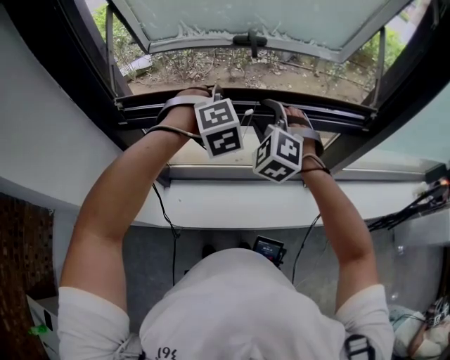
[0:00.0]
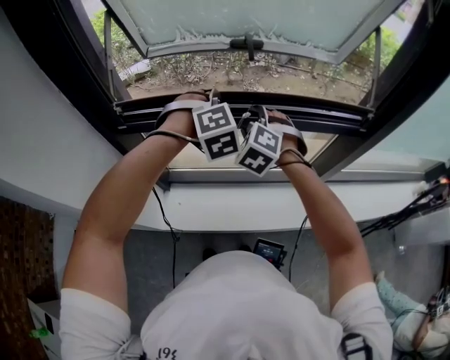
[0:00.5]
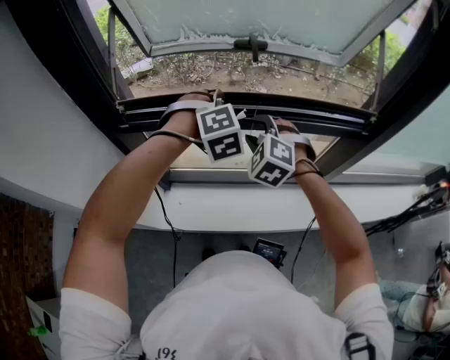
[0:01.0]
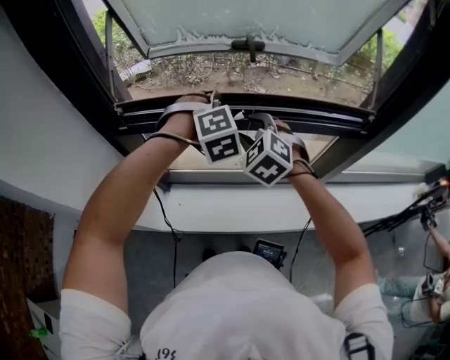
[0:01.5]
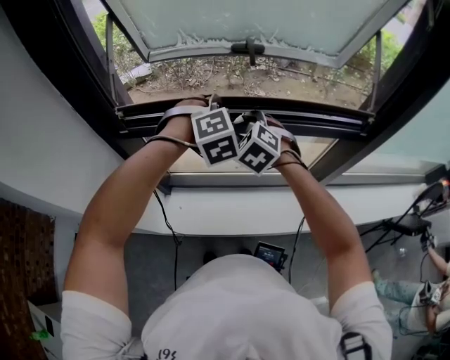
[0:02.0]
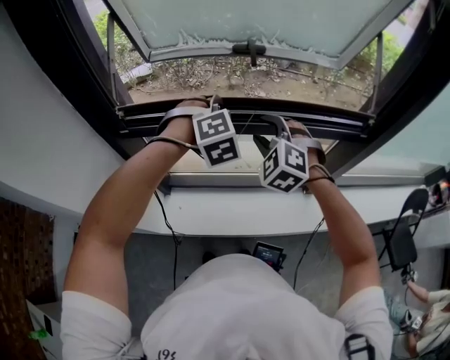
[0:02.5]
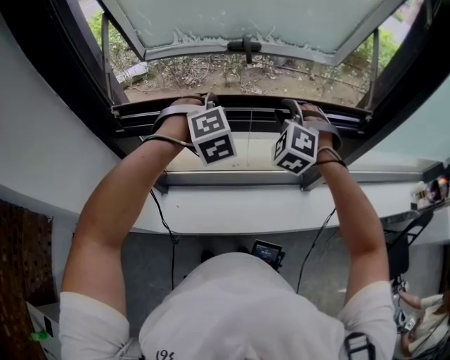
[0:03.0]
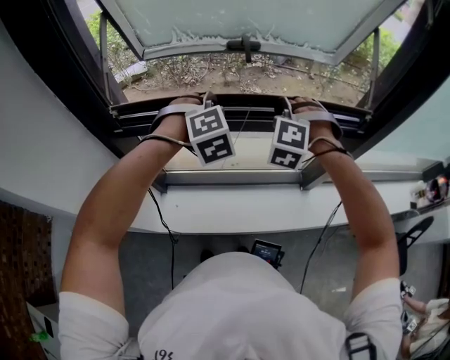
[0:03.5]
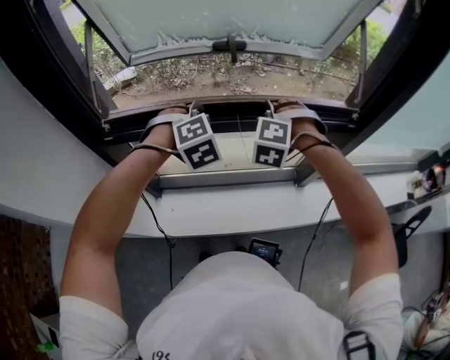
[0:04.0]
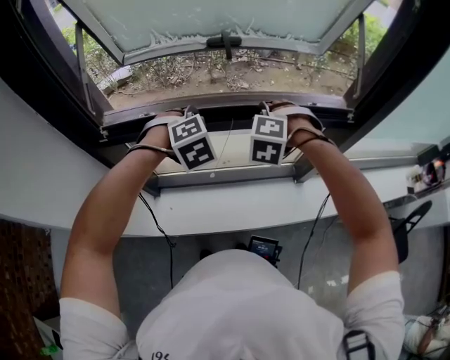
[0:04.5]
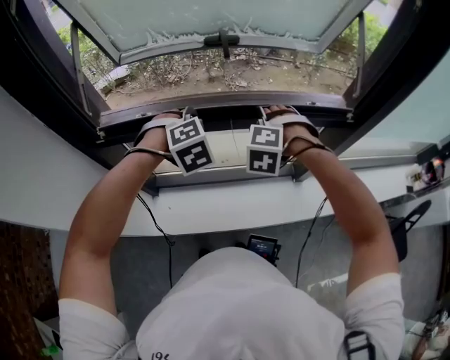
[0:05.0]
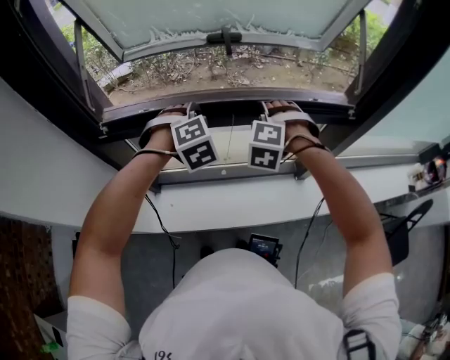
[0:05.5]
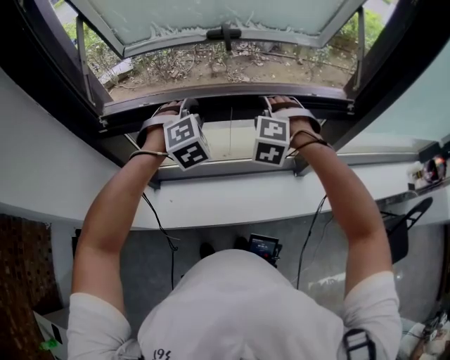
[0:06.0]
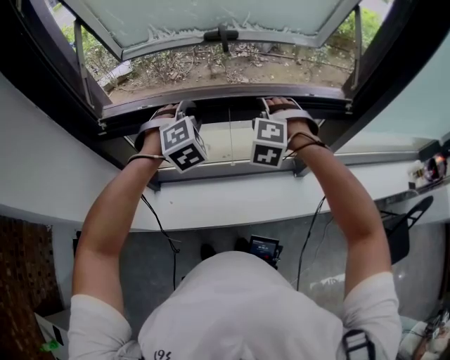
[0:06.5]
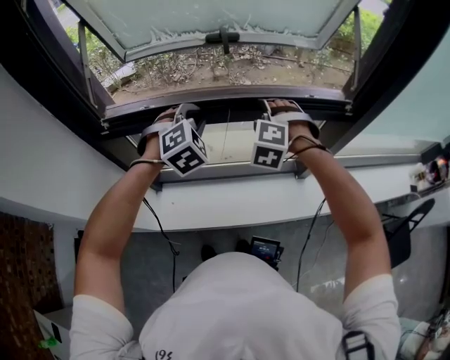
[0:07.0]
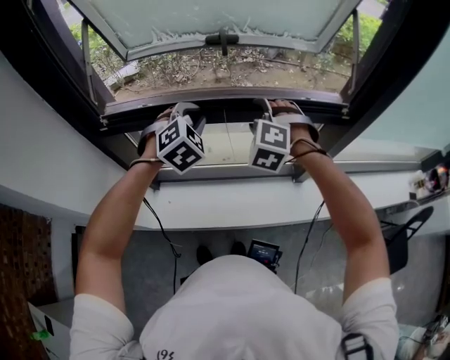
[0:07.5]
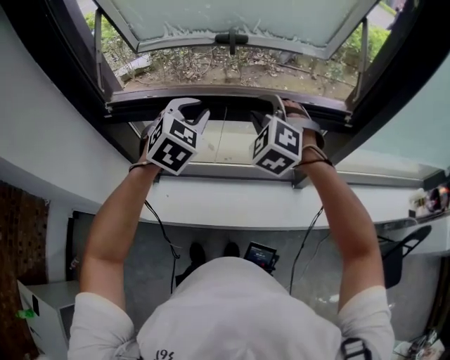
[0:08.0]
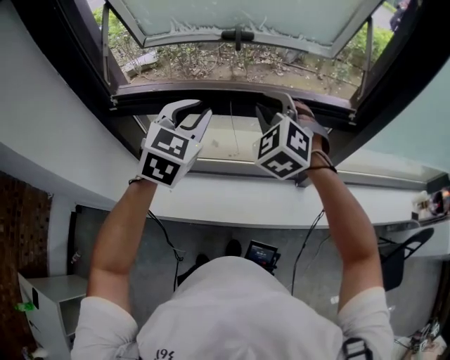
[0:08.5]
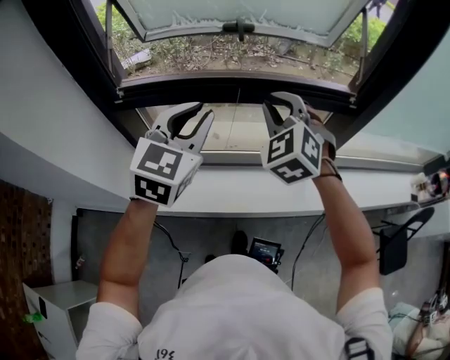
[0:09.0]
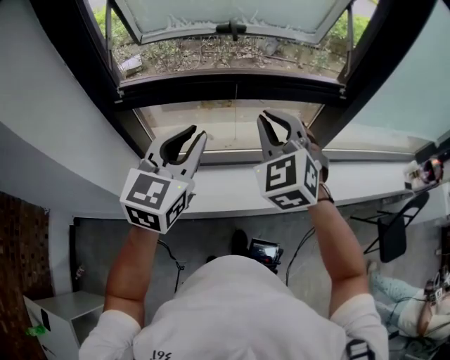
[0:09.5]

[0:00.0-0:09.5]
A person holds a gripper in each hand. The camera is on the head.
0:00.0 to 0:02.0: The right gripper moves downward, about 5 cm, and swivels some 20 degrees.
0:02.0 to 0:04.0: The right gripper moves to the right, some 10 cm, changes its angle by roughly 40 degrees, and closes its fingers.
0:04.0 to 0:05.5: The right gripper opens up.
0:05.5 to 0:07.5: The left gripper swivels roughly 20 degrees.
0:07.5 to 0:09.5: Both grippers travel together backward and upward, about 20 cm. The left gripper rotates about 50 degrees. Meanwhile the right gripper turns by roughly 40 degrees, and closes.

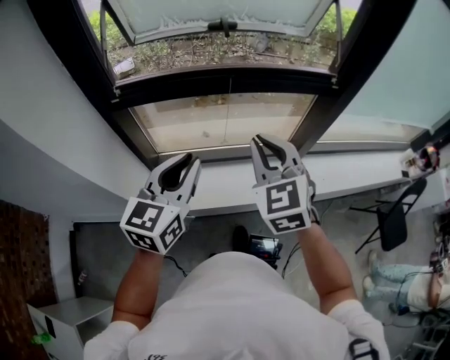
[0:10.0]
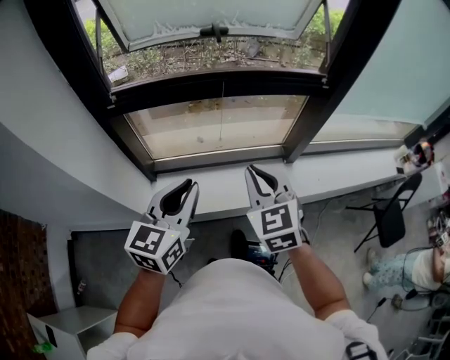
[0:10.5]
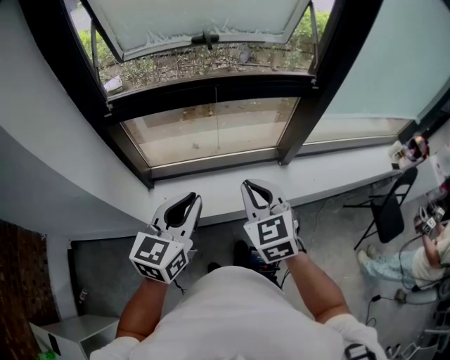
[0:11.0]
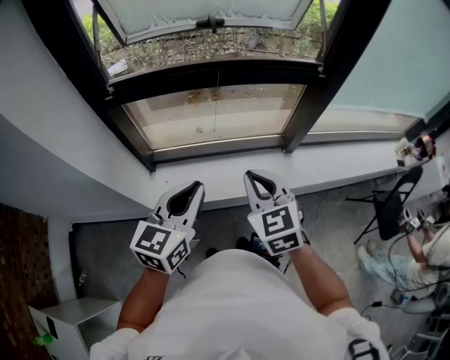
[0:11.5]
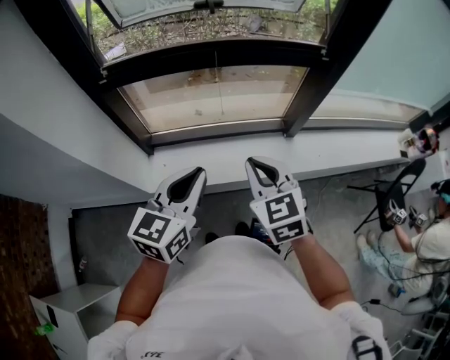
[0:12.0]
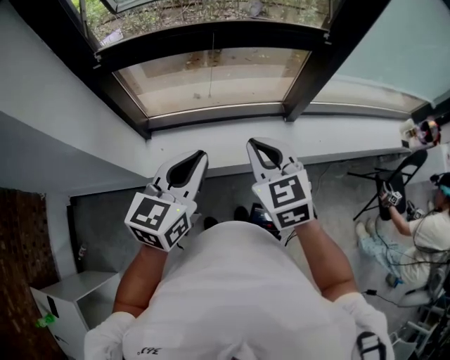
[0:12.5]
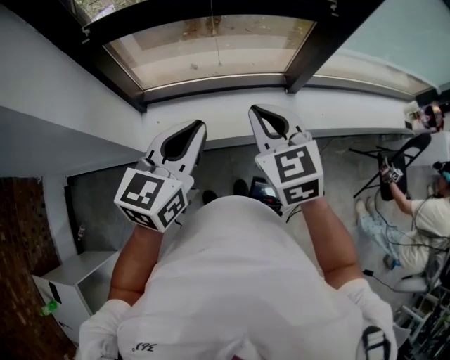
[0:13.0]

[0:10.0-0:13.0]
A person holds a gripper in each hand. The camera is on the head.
0:10.0 to 0:11.5: The right gripper travels backward and downward by approximately 10 cm. The left gripper shifts about 10 cm backward.
0:11.5 to 0:13.0: The grippers stay close to where they were, moving slightly.

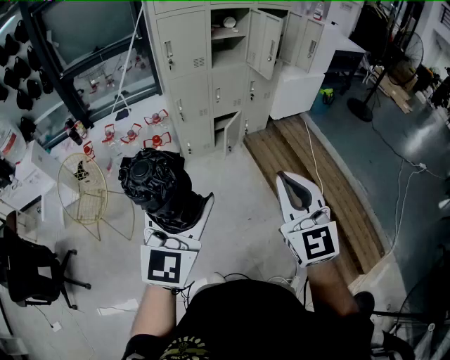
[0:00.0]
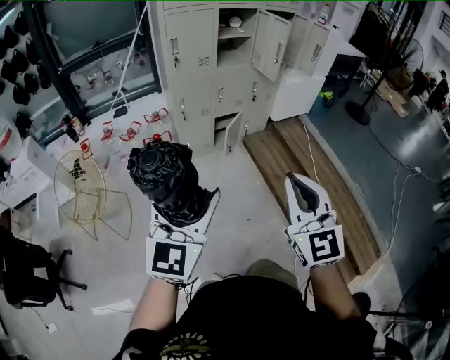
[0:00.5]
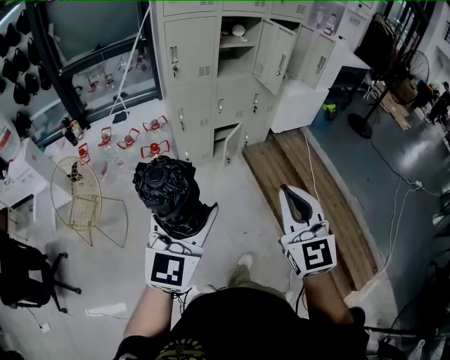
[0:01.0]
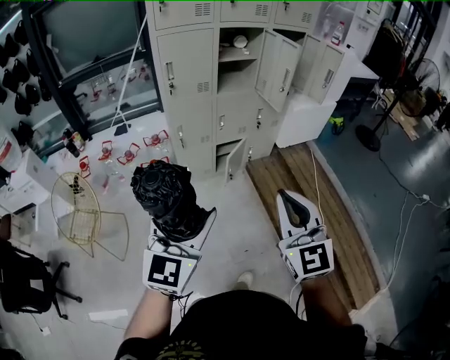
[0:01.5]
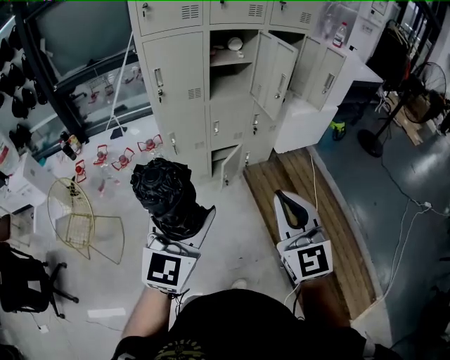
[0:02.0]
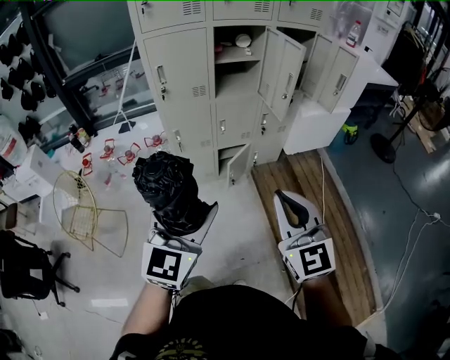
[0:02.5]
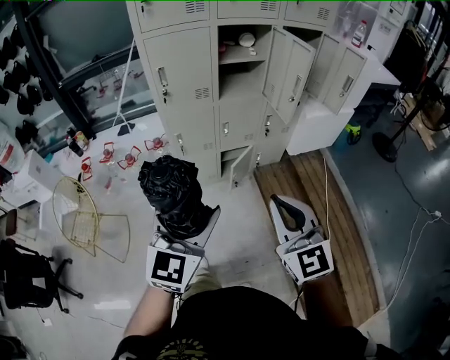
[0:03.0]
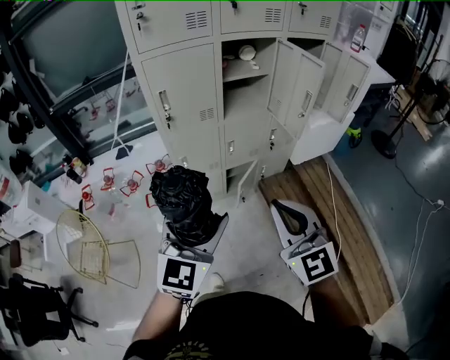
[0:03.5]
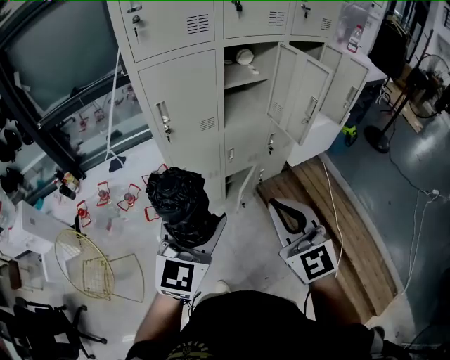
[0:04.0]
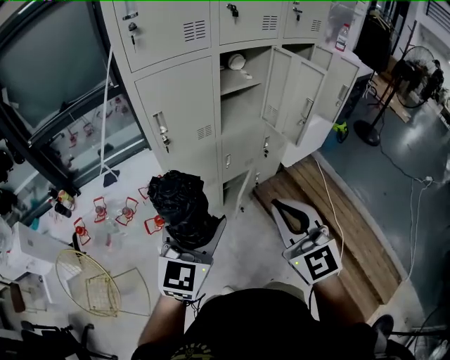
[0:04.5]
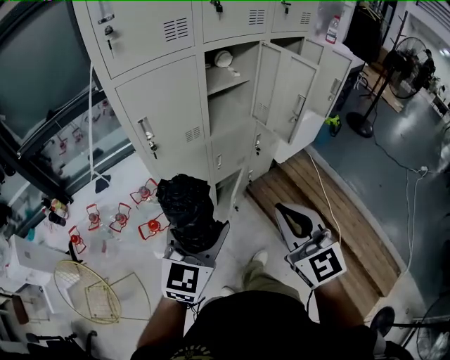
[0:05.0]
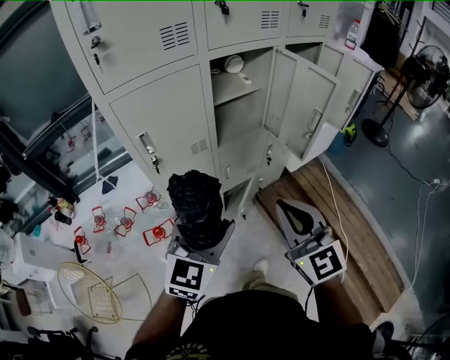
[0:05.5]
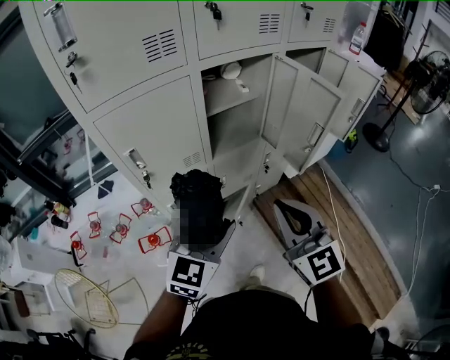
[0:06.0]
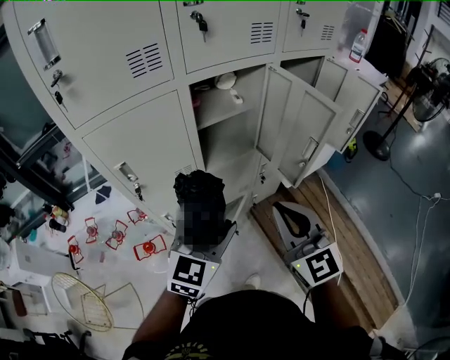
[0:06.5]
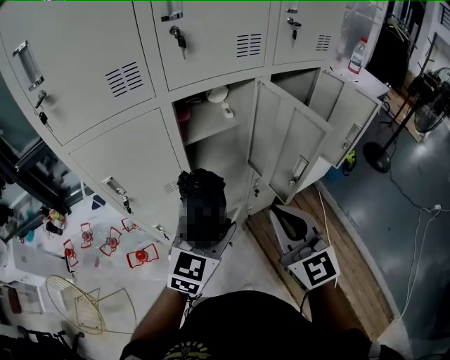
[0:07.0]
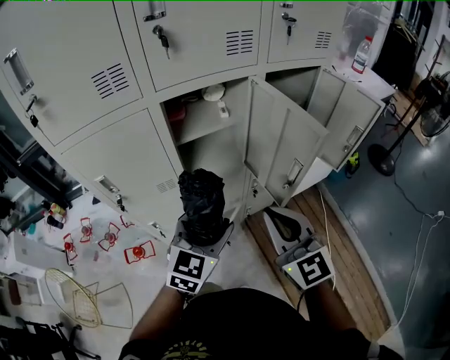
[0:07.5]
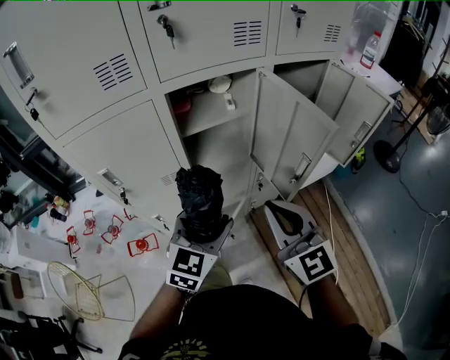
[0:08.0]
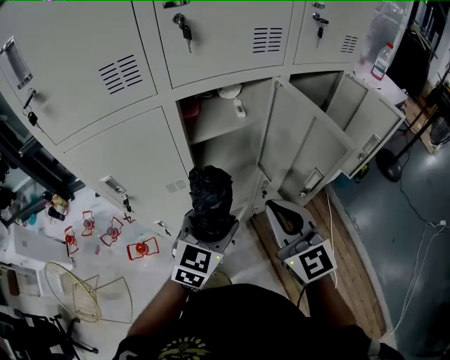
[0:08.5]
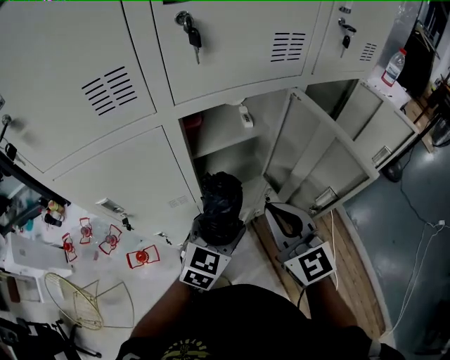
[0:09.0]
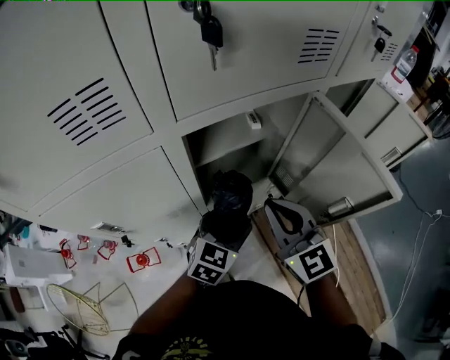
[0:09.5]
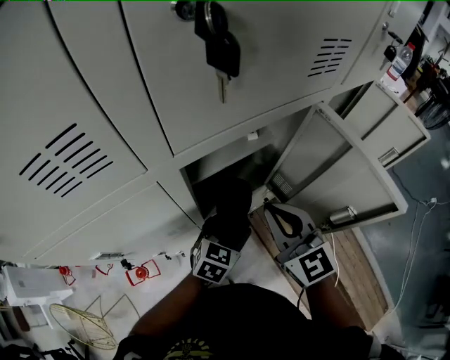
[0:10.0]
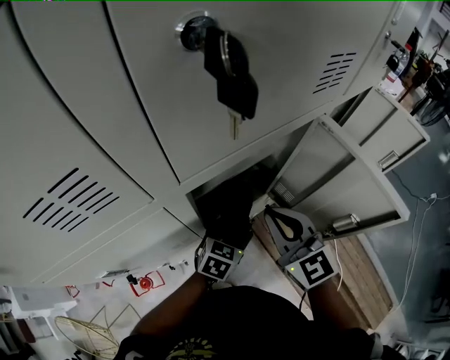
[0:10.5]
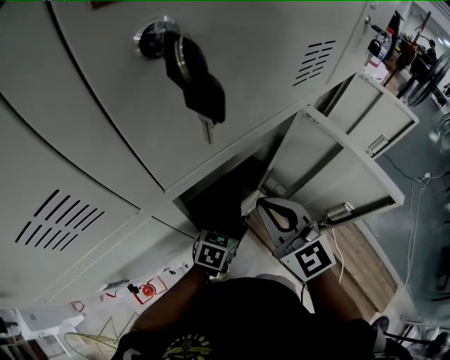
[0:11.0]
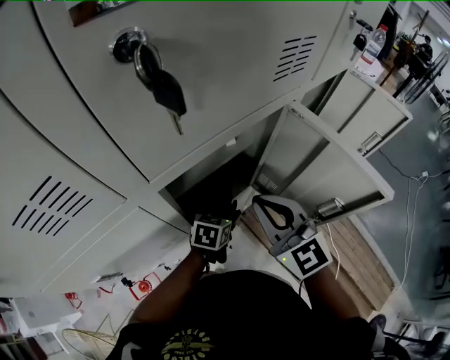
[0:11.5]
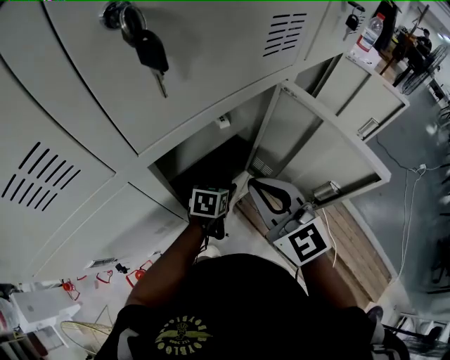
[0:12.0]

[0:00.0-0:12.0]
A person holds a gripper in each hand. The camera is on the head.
0:00.0 to 0:02.0: The grippers both shift forward by approximately 25 cm.
0:02.0 to 0:04.0: The two grippers go some 25 cm forward and to the left.
0:04.0 to 0:06.0: Both grippers travel together forward, about 20 cm.
0:06.0 to 0:08.0: The grippers both shift forward and to the right by roughly 15 cm.
0:08.0 to 0:10.0: The left gripper is displaced forward and downward by approximately 25 cm, and rotates roughly 20 degrees, while the right gripper shifts about 20 cm forward and to the left.
0:10.0 to 0:12.0: The left gripper heads forward and downward, covering roughly 10 cm.

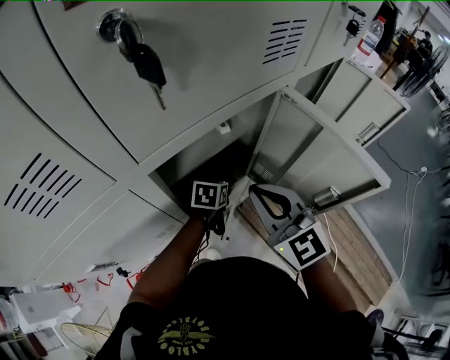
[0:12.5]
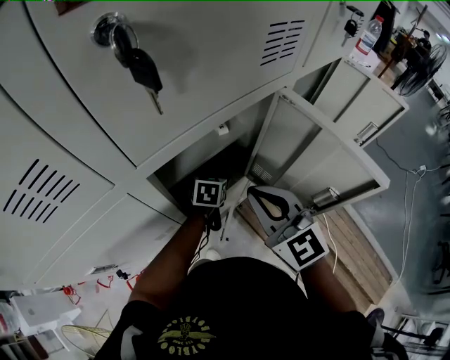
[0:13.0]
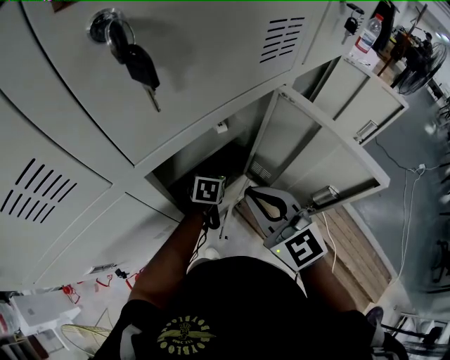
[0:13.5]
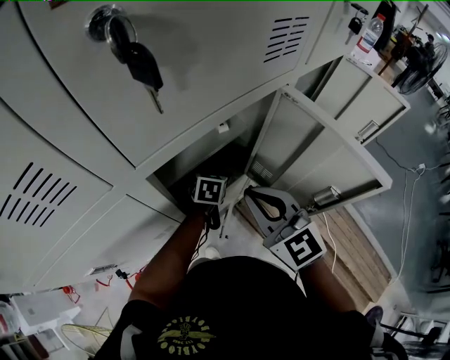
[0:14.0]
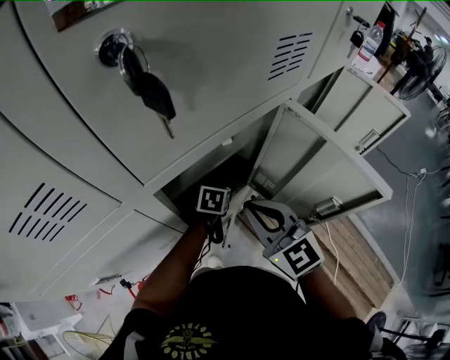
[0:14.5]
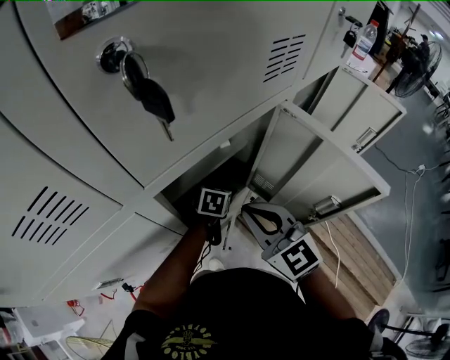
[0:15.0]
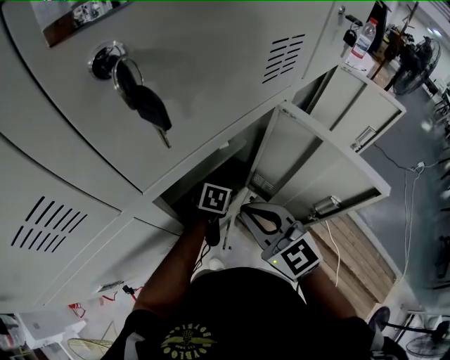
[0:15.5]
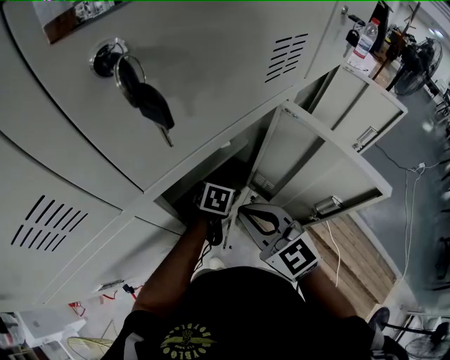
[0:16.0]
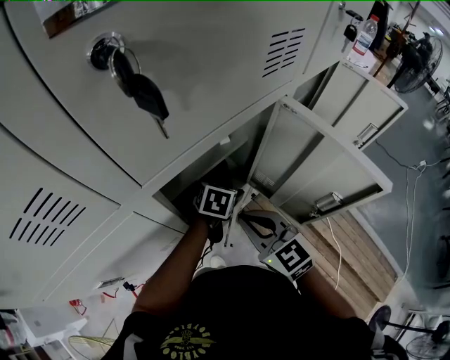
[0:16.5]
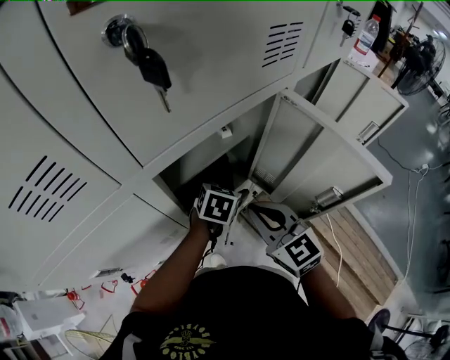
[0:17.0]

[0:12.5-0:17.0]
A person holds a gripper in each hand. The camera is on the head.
0:12.5 to 0:14.5: The grippers move only a little.
0:14.5 to 0:17.0: The left gripper travels upward by about 5 cm.
